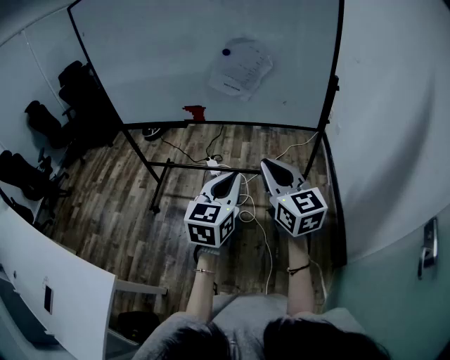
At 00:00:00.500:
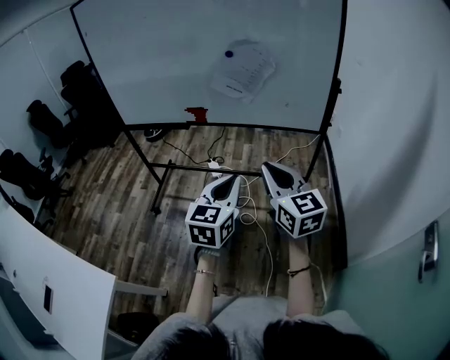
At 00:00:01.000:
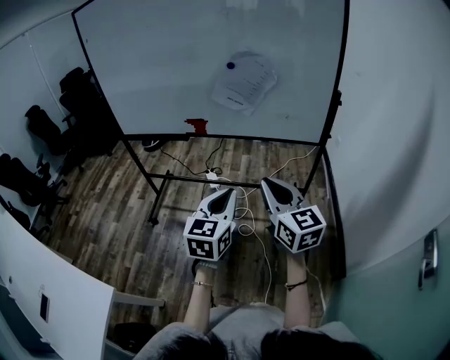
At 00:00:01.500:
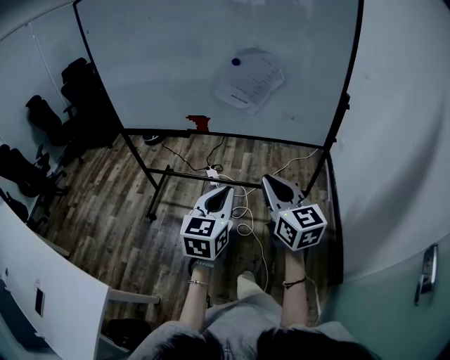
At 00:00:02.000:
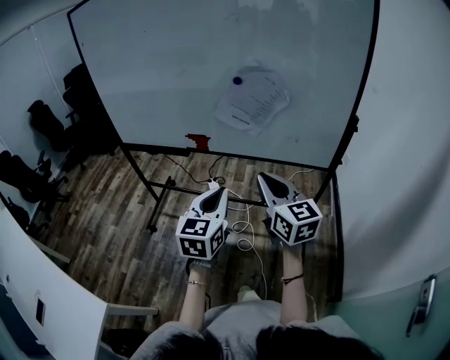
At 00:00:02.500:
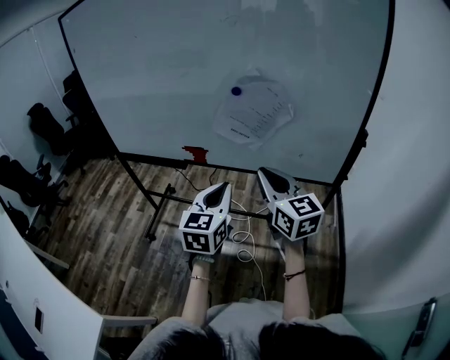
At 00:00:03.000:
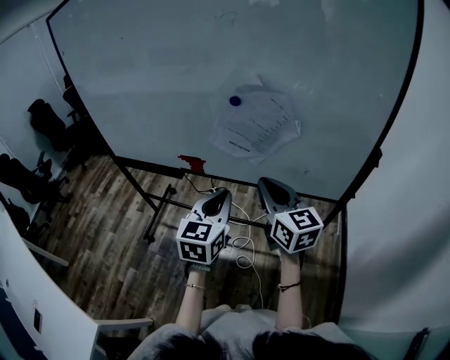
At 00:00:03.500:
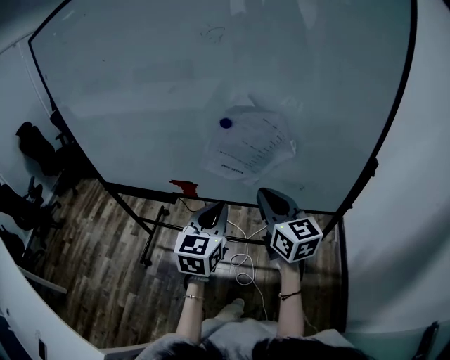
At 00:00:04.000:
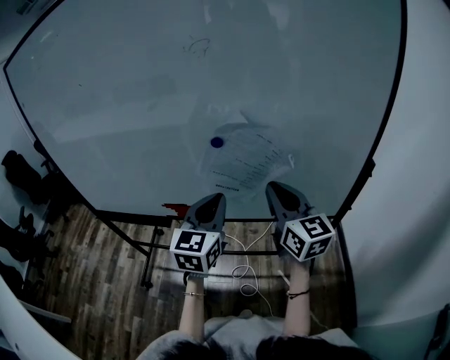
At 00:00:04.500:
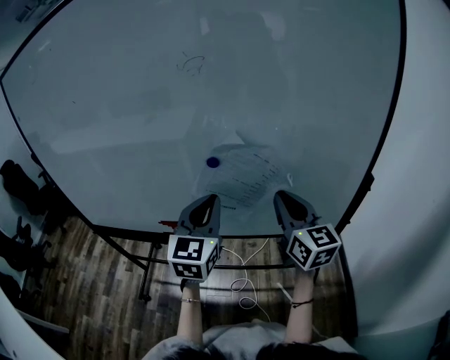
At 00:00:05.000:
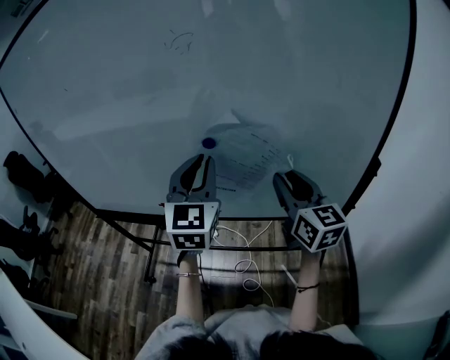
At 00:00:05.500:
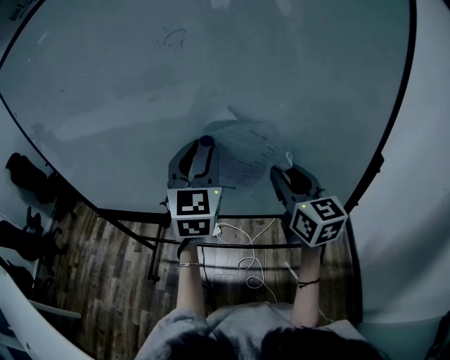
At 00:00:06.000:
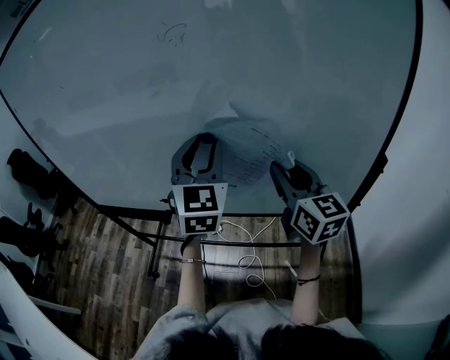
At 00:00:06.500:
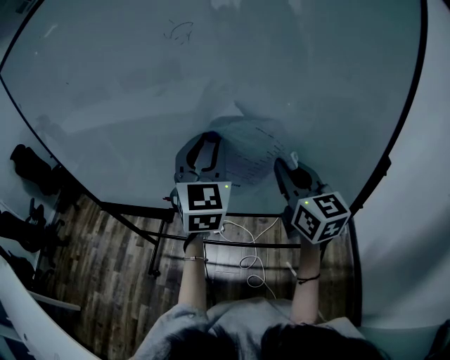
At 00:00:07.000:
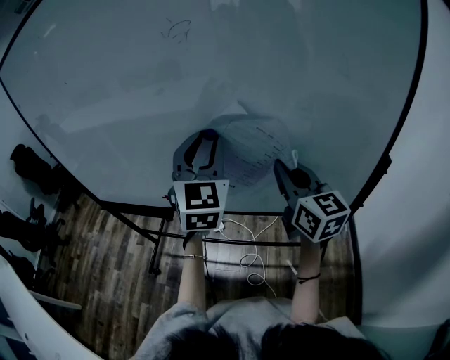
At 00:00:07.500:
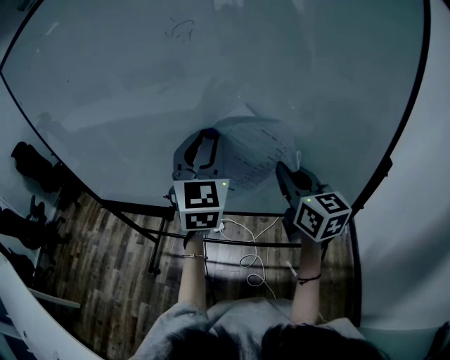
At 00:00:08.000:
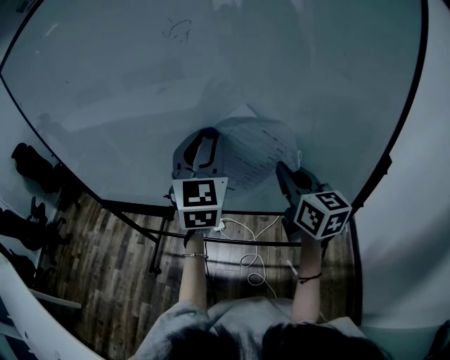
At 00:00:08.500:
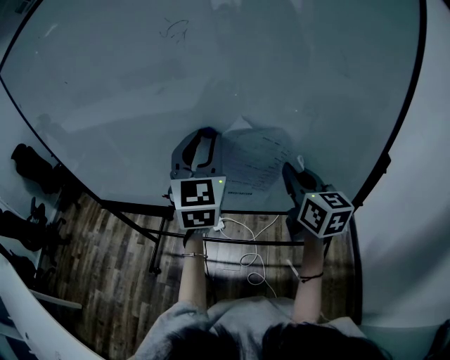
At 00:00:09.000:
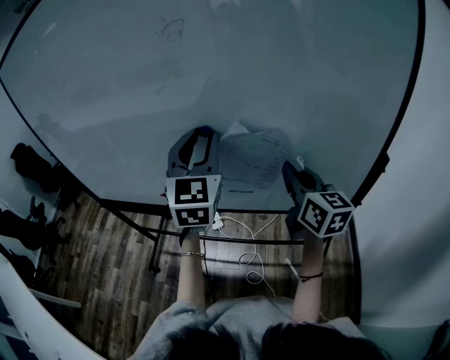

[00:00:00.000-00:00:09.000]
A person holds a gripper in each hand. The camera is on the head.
00:00:00.000 to 00:00:02.000: The two grippers go about 15 cm forward.
00:00:02.000 to 00:00:04.500: Both grippers travel together forward, about 30 cm.
00:00:04.500 to 00:00:07.000: The left gripper shifts about 10 cm upward and forward, swivels approximately 20 degrees, and opens; the right gripper opens, then closes once more.
00:00:07.000 to 00:00:09.000: There are only small adjustments of the grippers.

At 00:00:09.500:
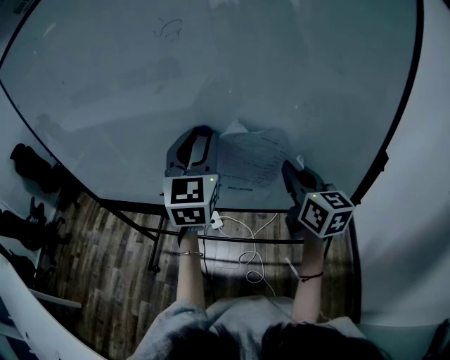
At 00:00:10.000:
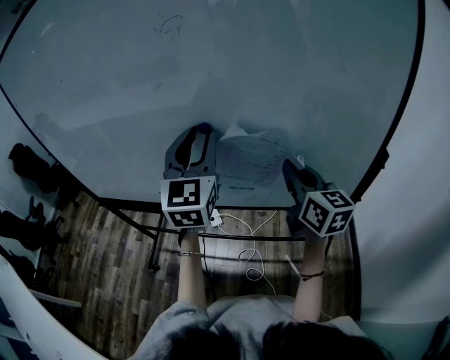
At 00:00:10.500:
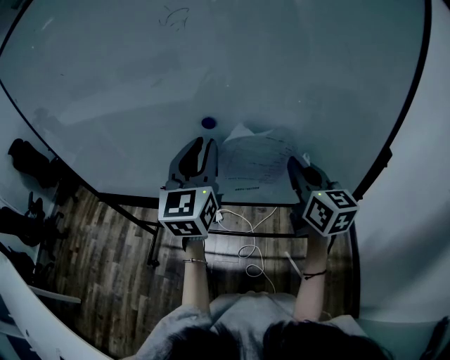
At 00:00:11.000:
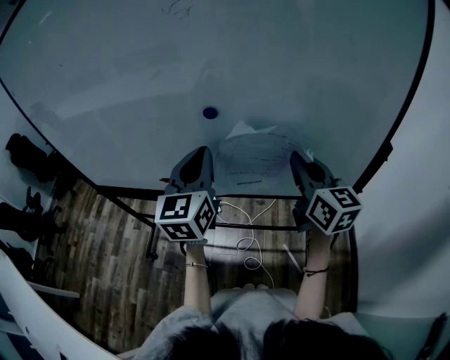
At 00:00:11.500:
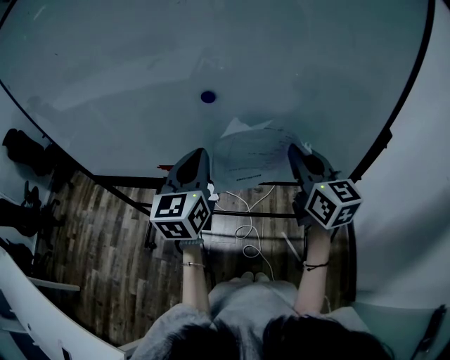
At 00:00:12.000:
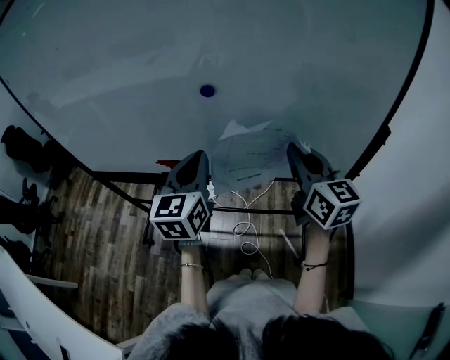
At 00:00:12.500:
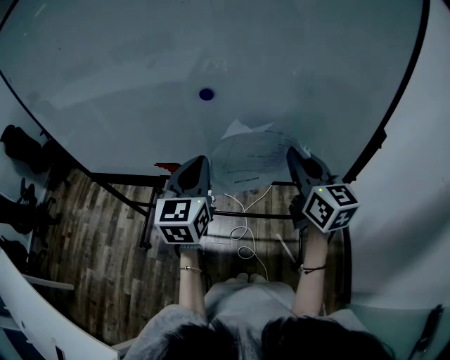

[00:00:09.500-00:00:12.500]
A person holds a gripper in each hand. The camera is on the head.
00:00:09.500 to 00:00:11.000: The left gripper moves downward, about 5 cm, and closes its fingers.
00:00:11.000 to 00:00:12.500: The grippers move only a little.

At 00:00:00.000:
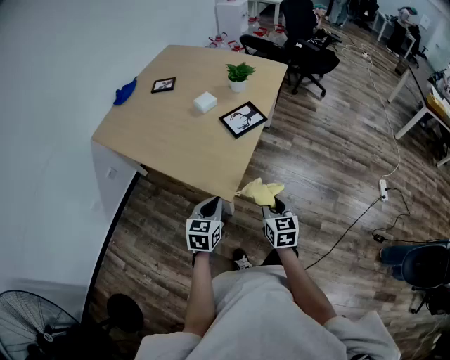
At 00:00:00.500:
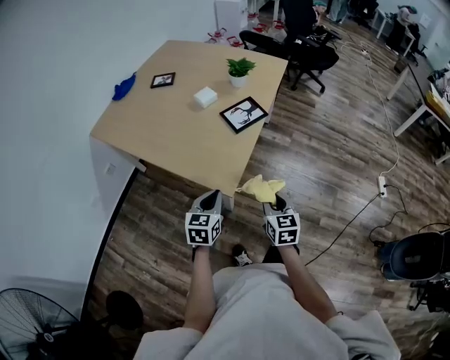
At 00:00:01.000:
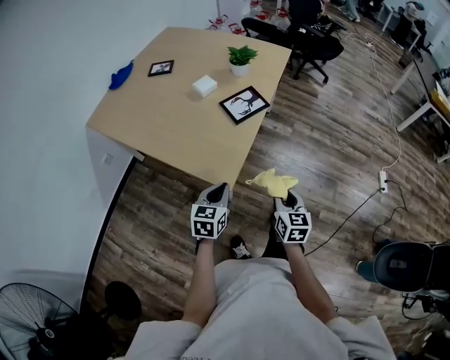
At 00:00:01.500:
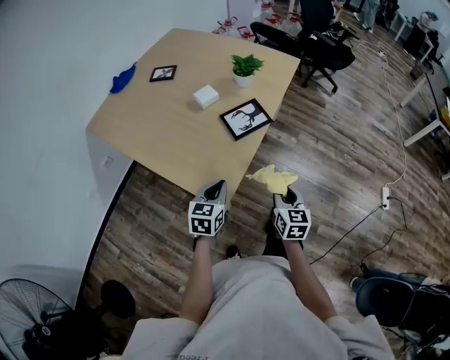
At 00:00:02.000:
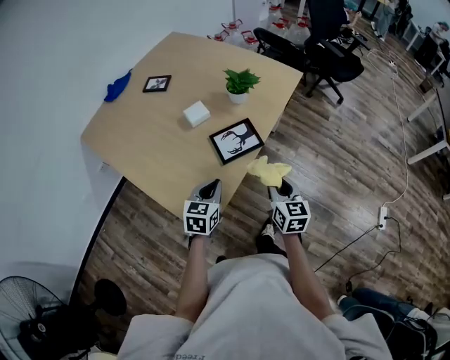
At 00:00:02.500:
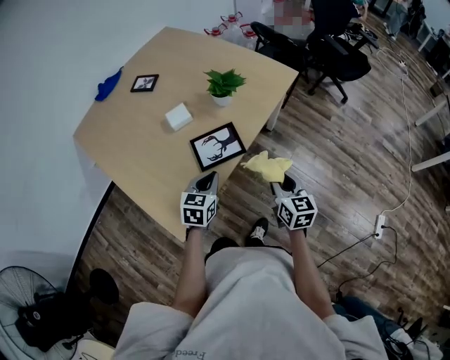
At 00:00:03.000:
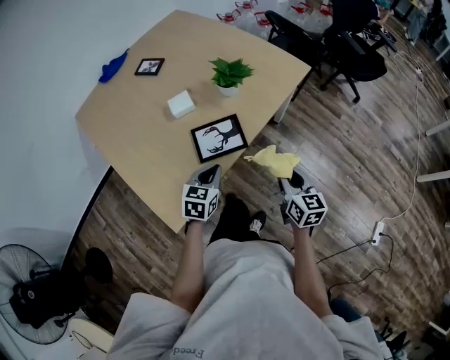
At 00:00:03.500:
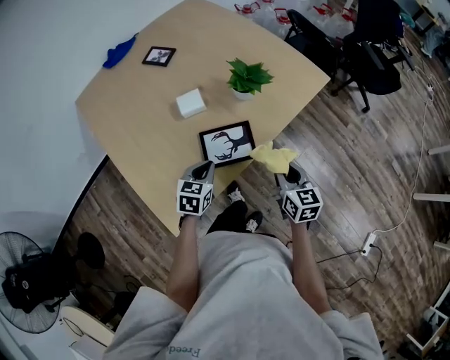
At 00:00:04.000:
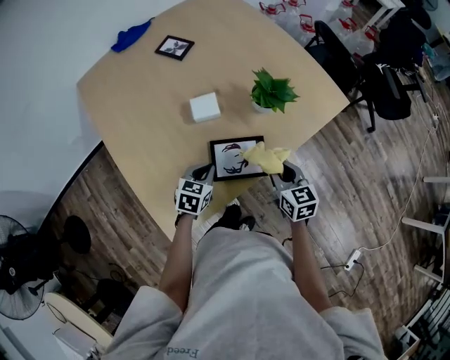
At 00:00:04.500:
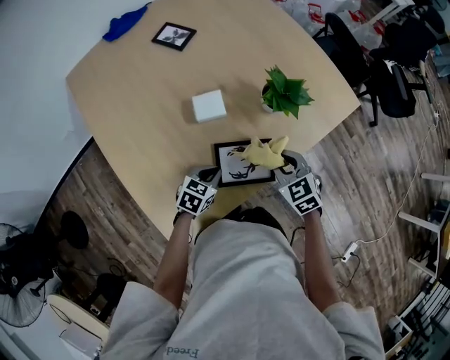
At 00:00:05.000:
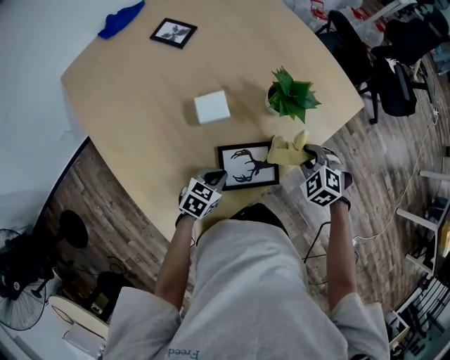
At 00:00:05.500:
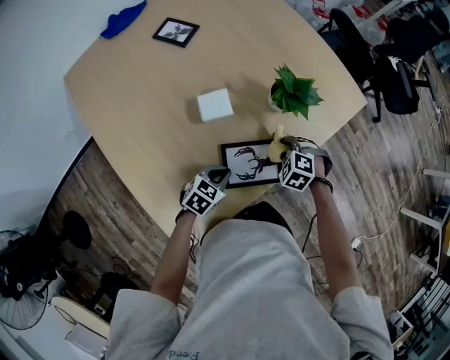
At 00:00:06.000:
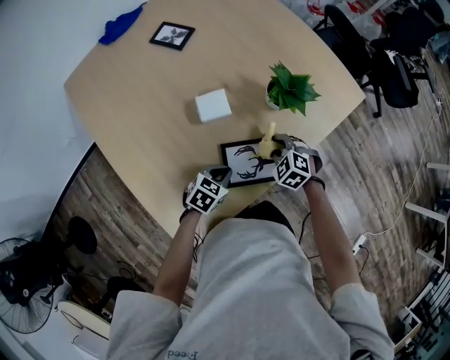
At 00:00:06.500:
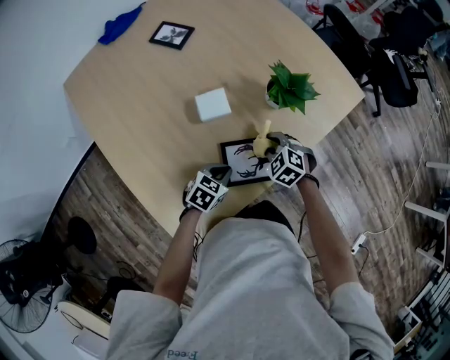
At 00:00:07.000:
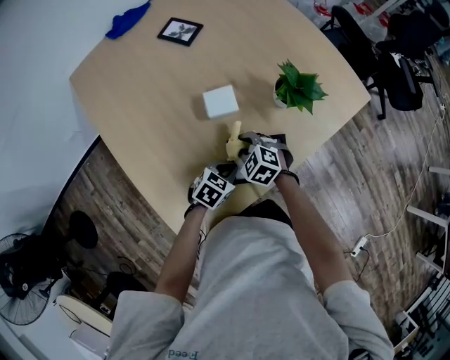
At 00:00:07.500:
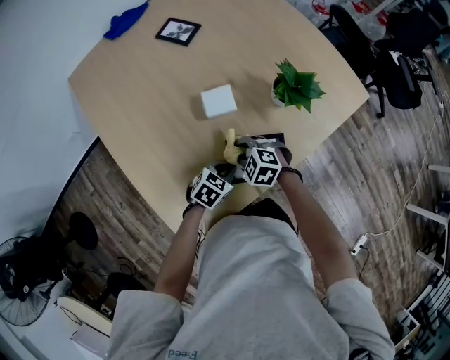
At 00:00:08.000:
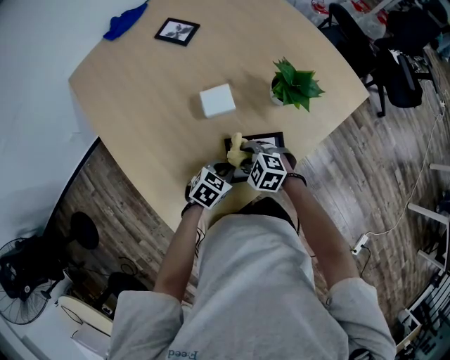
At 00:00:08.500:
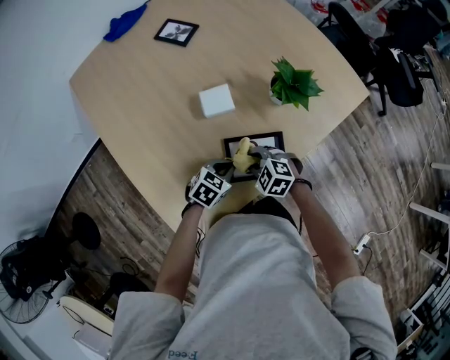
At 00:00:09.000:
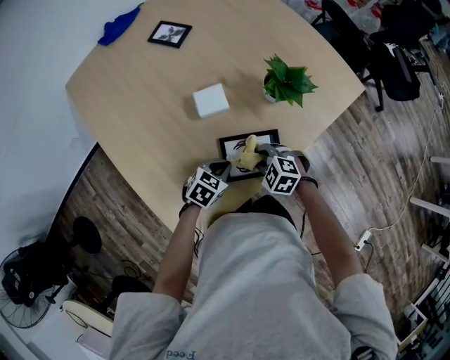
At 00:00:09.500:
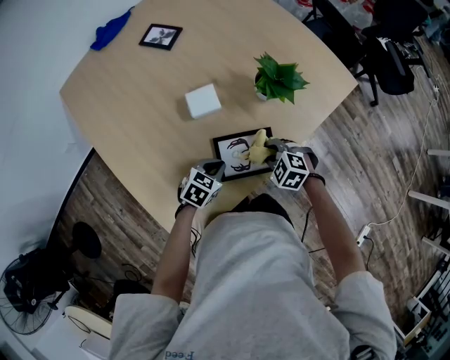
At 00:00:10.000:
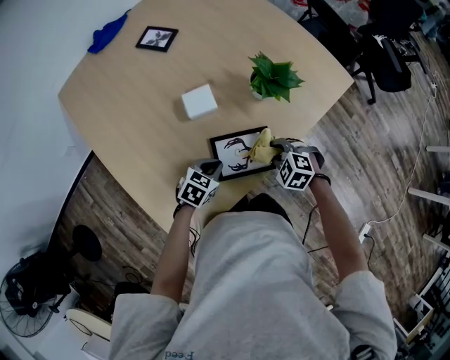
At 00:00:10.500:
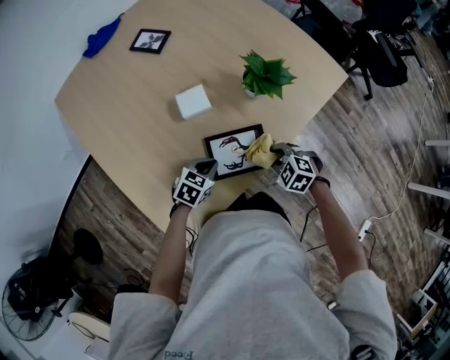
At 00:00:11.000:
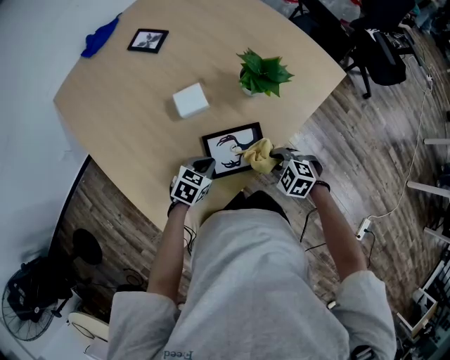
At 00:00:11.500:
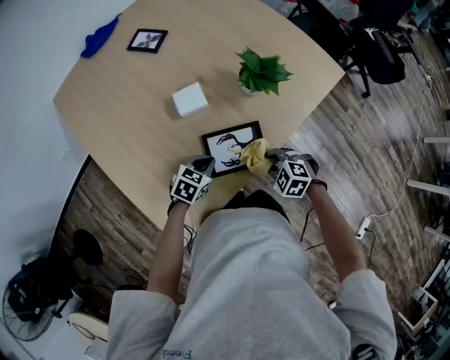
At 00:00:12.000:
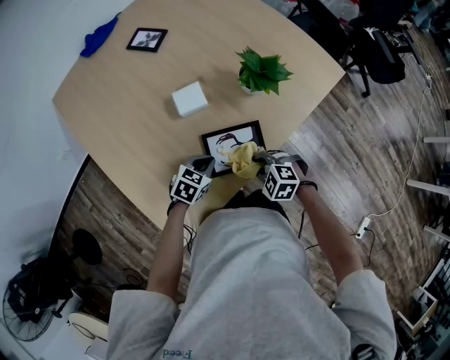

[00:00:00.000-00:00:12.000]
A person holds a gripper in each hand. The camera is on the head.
00:00:00.000 to 00:00:02.000: Both grippers travel together forward, approximately 25 cm.
00:00:02.000 to 00:00:04.000: The left gripper heads forward and downward, covering approximately 20 cm, while the right gripper travels forward by about 25 cm, and turns by some 30 degrees.
00:00:04.000 to 00:00:06.000: The right gripper moves downward, to the left and forward, some 15 cm, and twists some 50 degrees counterclockwise, seen from behind. Meanwhile the left gripper travels downward by roughly 5 cm, and swivels roughly 20 degrees.
00:00:06.000 to 00:00:08.000: The right gripper ends up roughly 15 cm from where it was.
00:00:08.000 to 00:00:10.000: The right gripper moves roughly 15 cm.
00:00:10.000 to 00:00:12.000: The right gripper shifts some 5 cm backward.

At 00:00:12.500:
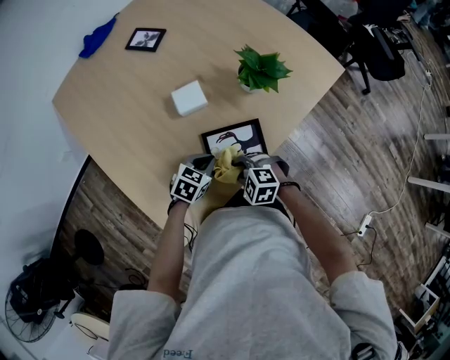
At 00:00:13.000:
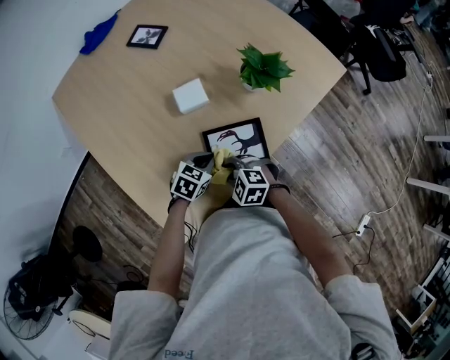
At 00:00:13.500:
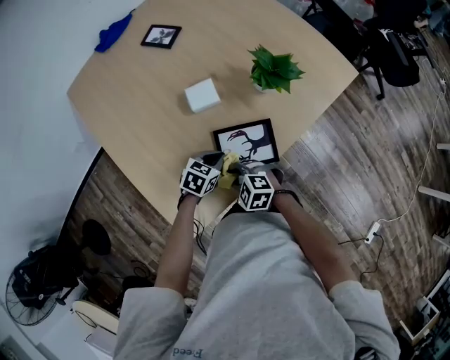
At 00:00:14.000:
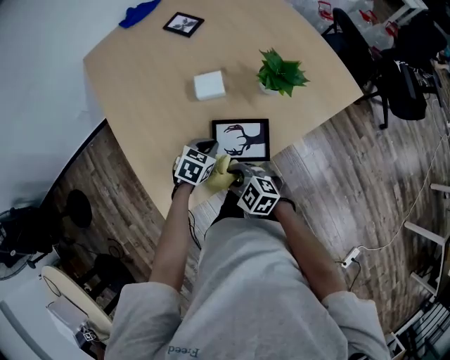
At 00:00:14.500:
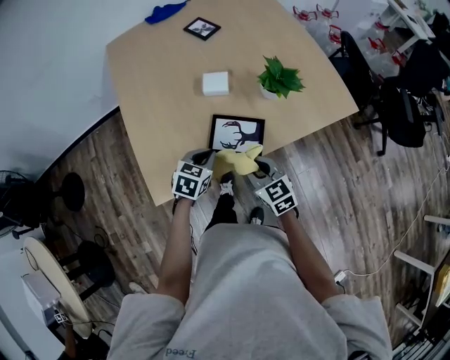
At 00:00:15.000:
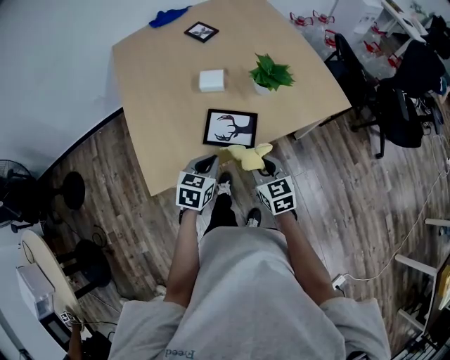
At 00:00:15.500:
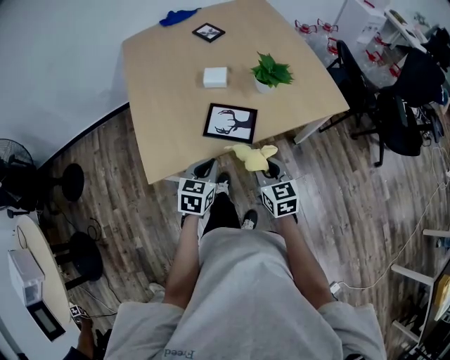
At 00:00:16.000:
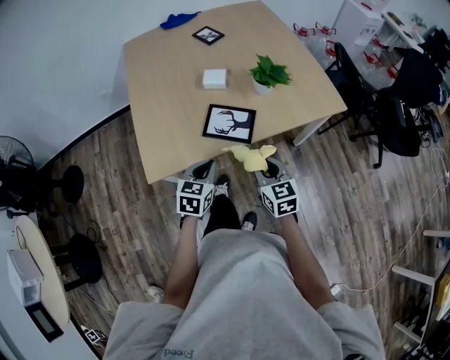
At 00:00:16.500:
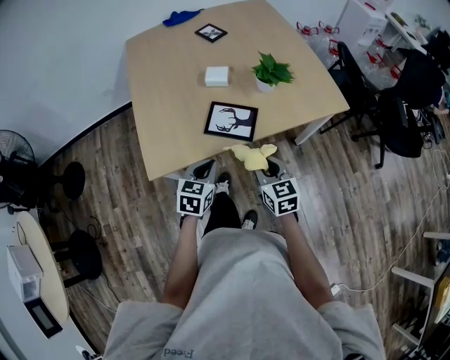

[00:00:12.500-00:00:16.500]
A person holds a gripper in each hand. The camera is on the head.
00:00:12.500 to 00:00:14.500: The two grippers go some 10 cm upward. The right gripper tips its fingers upward by approximately 30 degrees; the left gripper swivels approximately 30 degrees.
00:00:14.500 to 00:00:16.500: The left gripper moves backward, approximately 15 cm. The right gripper is displaced backward and to the right by about 10 cm.
